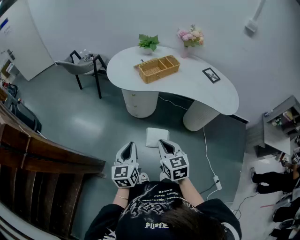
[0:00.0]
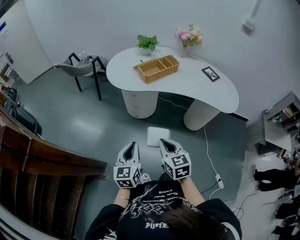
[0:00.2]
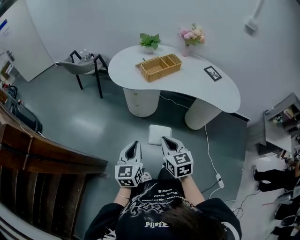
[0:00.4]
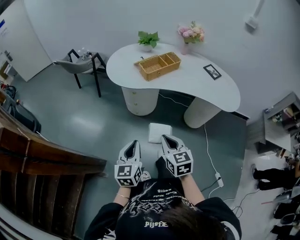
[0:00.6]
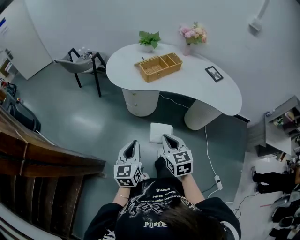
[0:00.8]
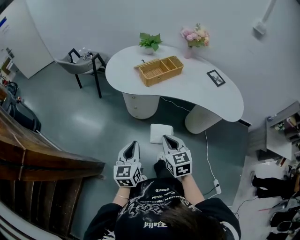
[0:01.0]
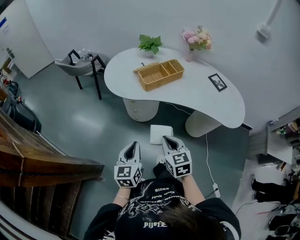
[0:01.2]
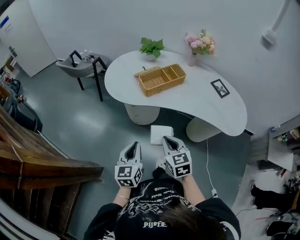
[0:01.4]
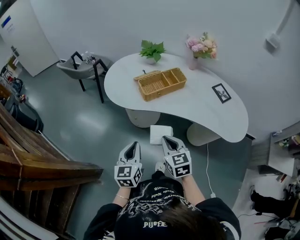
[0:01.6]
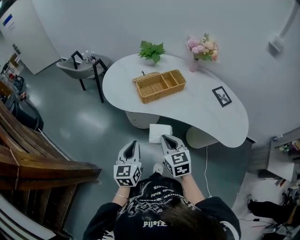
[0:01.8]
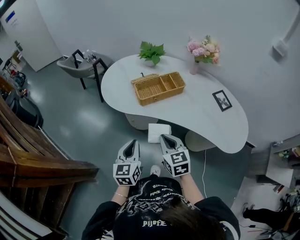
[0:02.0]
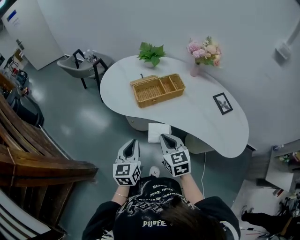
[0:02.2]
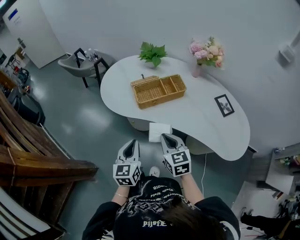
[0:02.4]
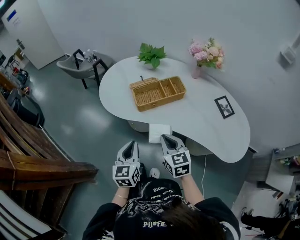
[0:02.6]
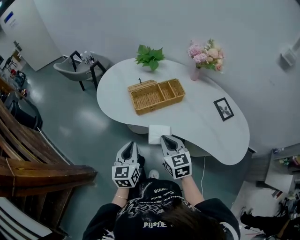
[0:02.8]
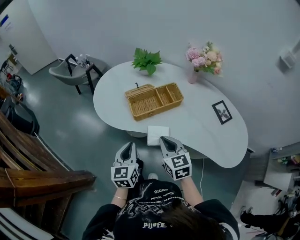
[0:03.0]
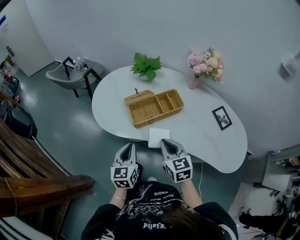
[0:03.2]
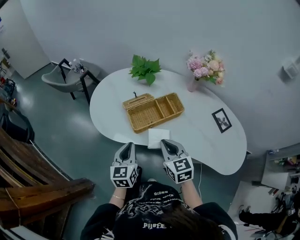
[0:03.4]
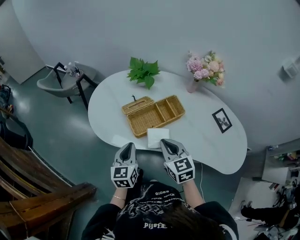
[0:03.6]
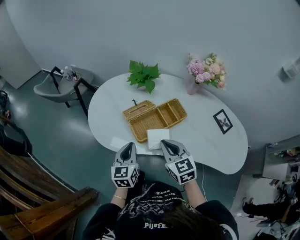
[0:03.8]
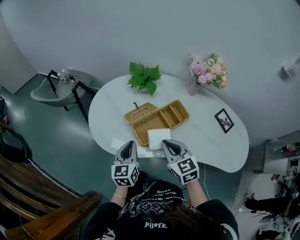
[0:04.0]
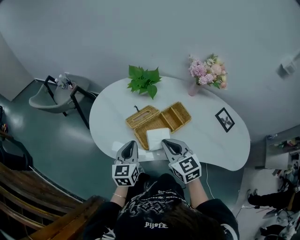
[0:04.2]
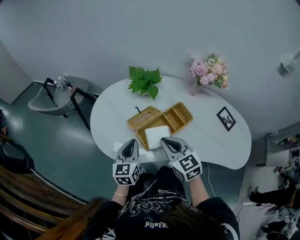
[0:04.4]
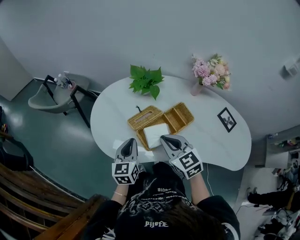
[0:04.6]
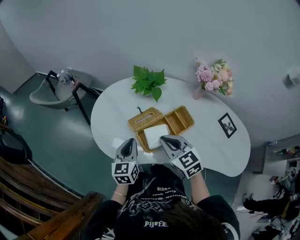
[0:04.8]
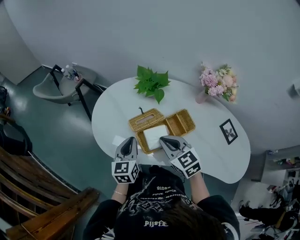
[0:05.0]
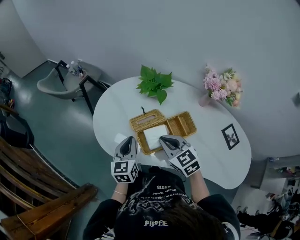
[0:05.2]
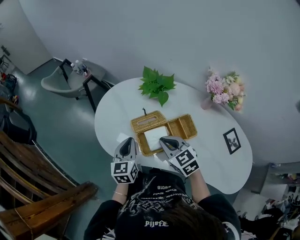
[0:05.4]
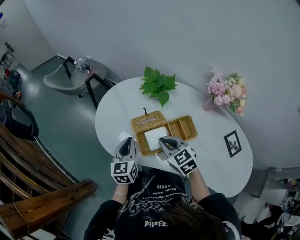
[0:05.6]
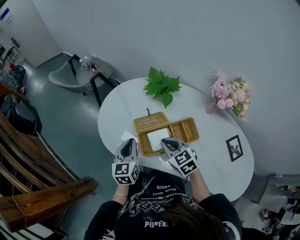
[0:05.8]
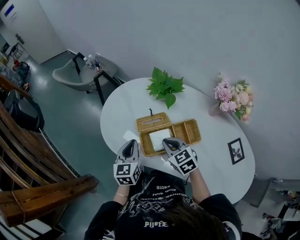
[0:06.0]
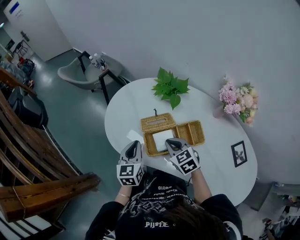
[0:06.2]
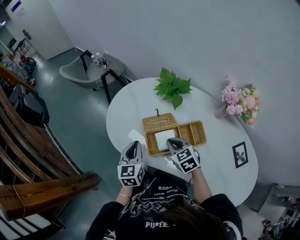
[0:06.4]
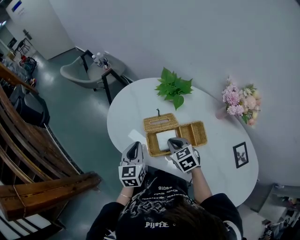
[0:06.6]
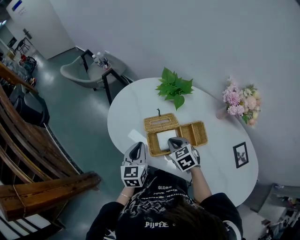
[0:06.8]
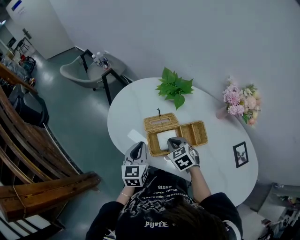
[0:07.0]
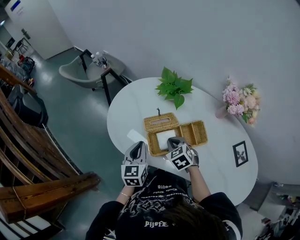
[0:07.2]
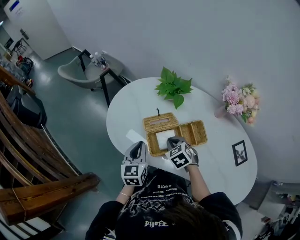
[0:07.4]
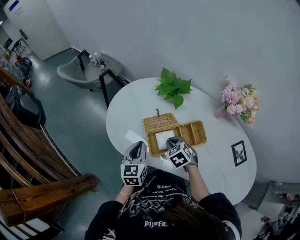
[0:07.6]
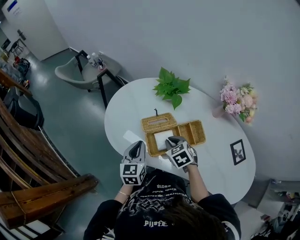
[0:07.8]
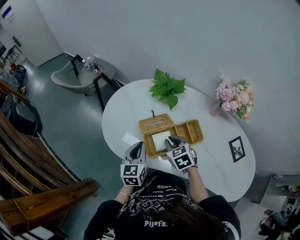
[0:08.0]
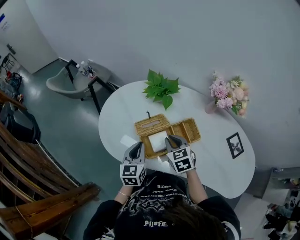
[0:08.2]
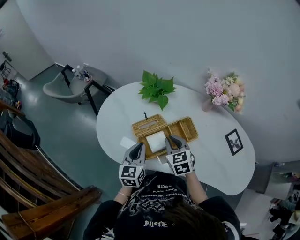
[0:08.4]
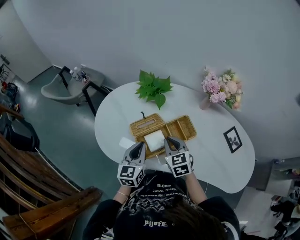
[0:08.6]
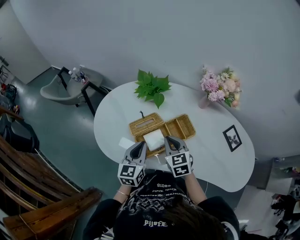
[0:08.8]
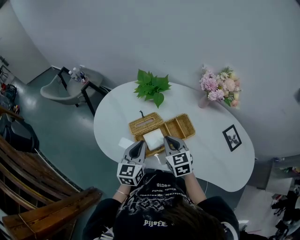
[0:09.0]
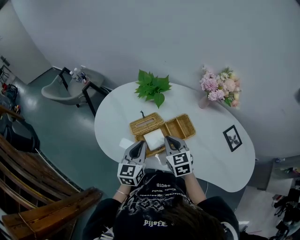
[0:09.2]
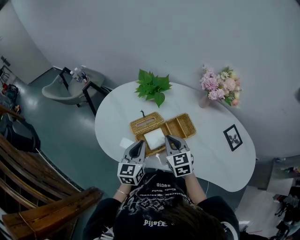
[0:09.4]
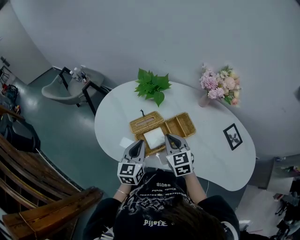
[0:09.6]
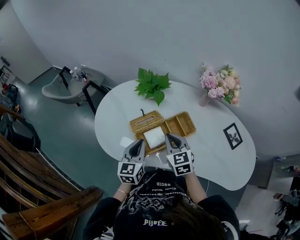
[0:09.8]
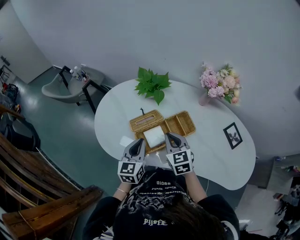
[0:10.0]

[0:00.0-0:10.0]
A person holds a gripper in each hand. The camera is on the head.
0:00.0 to 0:01.4: The left gripper travels forward and to the right by roughly 15 cm. Meanwhile the right gripper moves forward, some 15 cm.
0:01.4 to 0:02.8: Both grippers travel together forward and to the right, some 20 cm.
0:02.8 to 0:04.2: Both grippers move forward, about 25 cm.
0:04.2 to 0:05.8: The left gripper changes its angle by some 20 degrees, while the right gripper shifts approximately 5 cm forward, and turns by about 30 degrees.
0:05.8 to 0:07.2: The right gripper travels downward by some 5 cm.
0:07.2 to 0:08.6: The right gripper shifts about 5 cm upward, and swivels approximately 30 degrees. Meanwhile the left gripper goes approximately 5 cm to the right.
0:08.6 to 0:10.0: The grippers stay close to where they were, moving slightly.

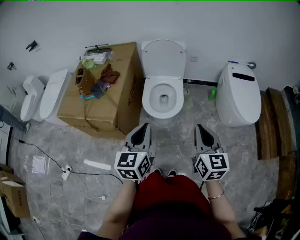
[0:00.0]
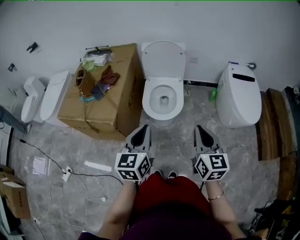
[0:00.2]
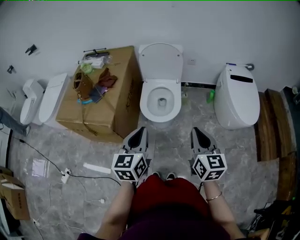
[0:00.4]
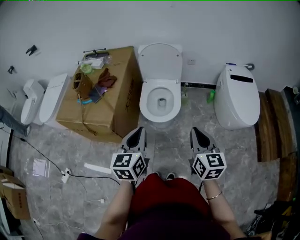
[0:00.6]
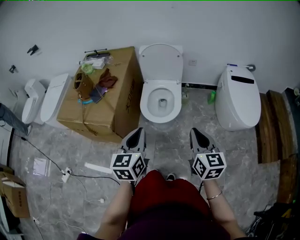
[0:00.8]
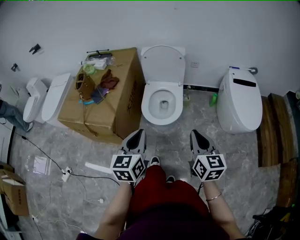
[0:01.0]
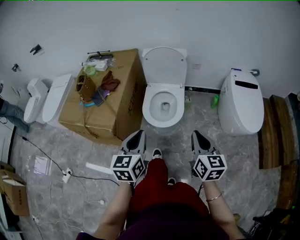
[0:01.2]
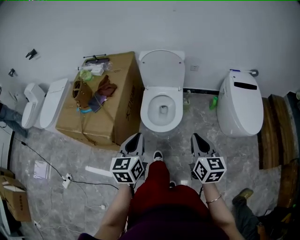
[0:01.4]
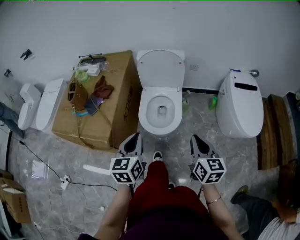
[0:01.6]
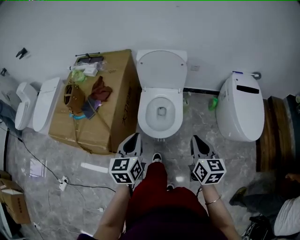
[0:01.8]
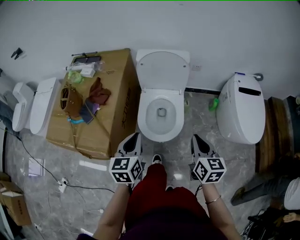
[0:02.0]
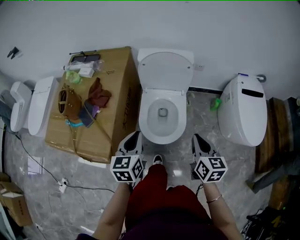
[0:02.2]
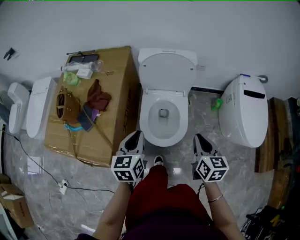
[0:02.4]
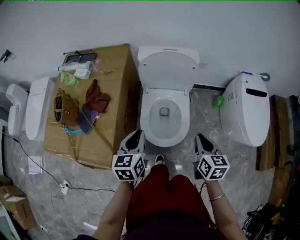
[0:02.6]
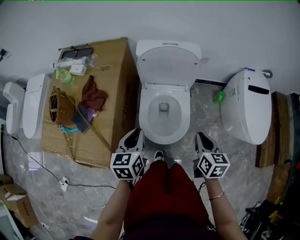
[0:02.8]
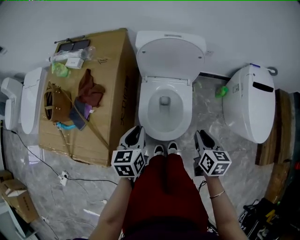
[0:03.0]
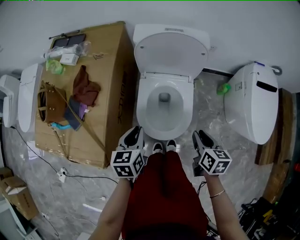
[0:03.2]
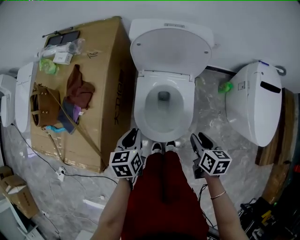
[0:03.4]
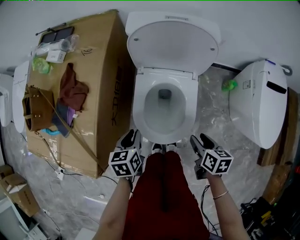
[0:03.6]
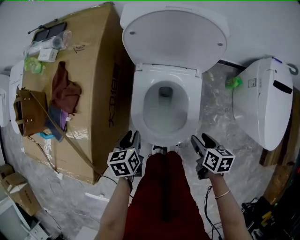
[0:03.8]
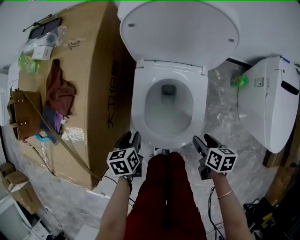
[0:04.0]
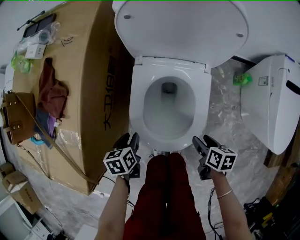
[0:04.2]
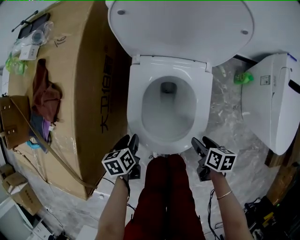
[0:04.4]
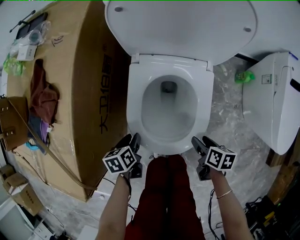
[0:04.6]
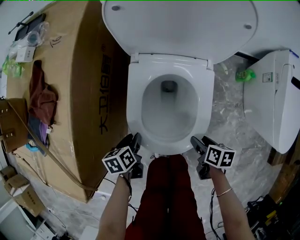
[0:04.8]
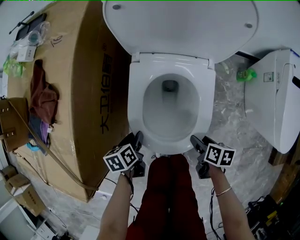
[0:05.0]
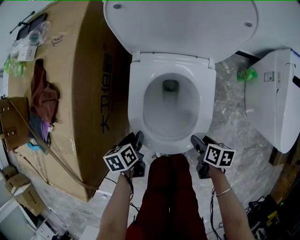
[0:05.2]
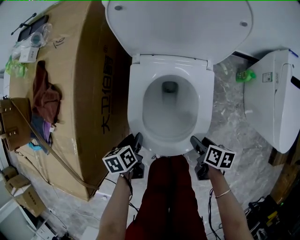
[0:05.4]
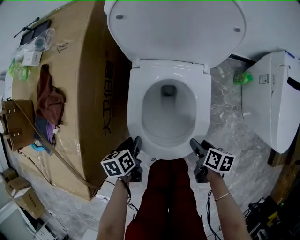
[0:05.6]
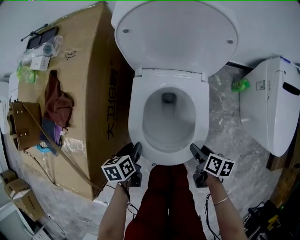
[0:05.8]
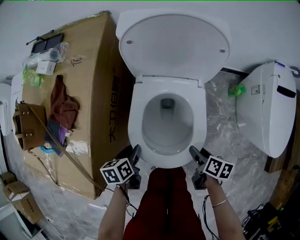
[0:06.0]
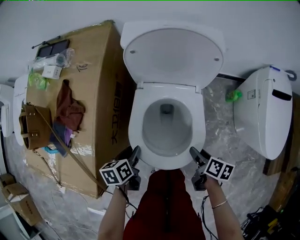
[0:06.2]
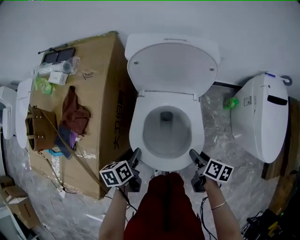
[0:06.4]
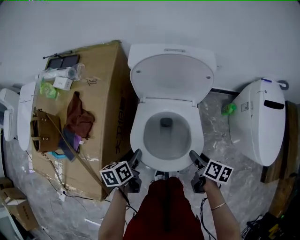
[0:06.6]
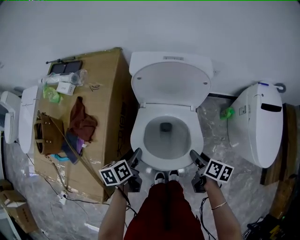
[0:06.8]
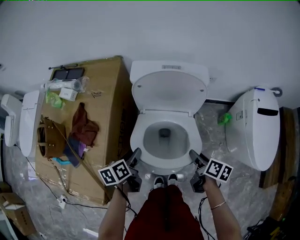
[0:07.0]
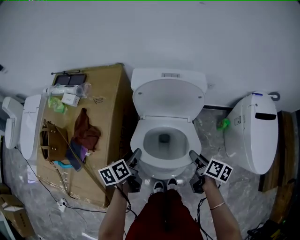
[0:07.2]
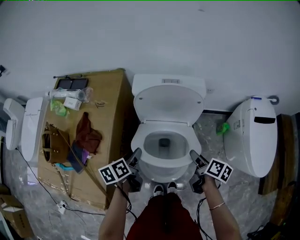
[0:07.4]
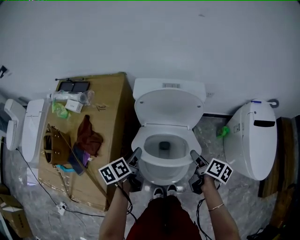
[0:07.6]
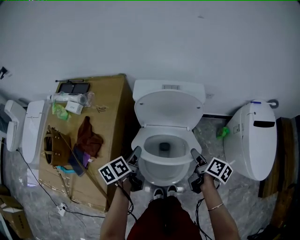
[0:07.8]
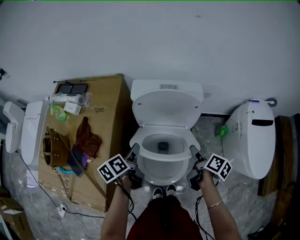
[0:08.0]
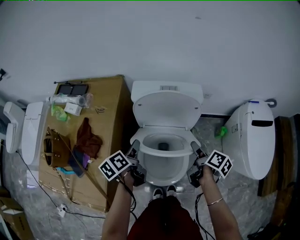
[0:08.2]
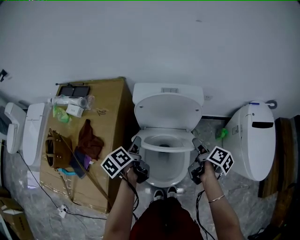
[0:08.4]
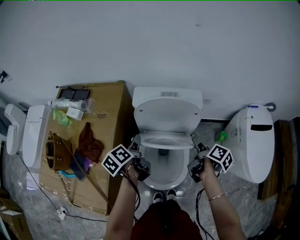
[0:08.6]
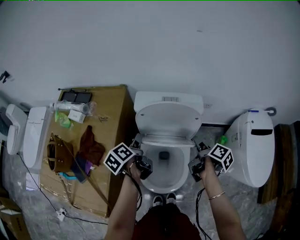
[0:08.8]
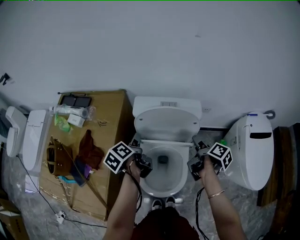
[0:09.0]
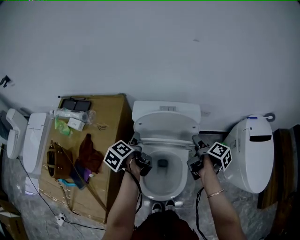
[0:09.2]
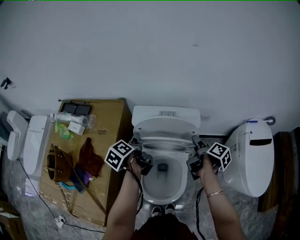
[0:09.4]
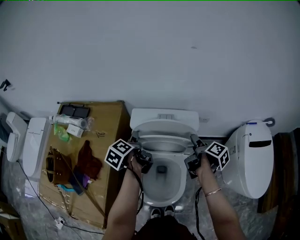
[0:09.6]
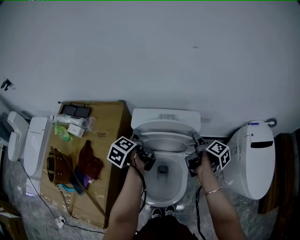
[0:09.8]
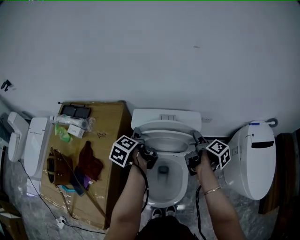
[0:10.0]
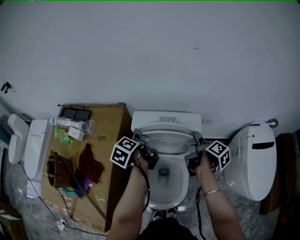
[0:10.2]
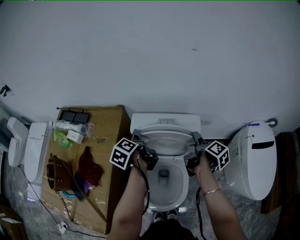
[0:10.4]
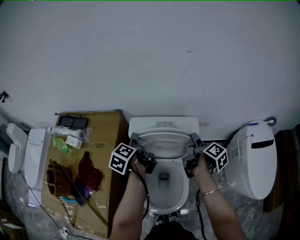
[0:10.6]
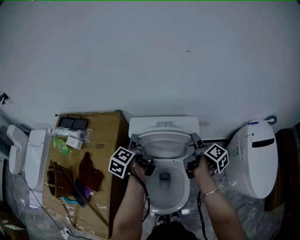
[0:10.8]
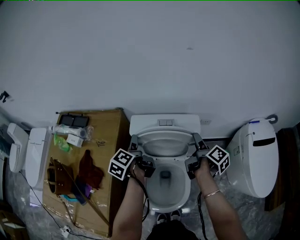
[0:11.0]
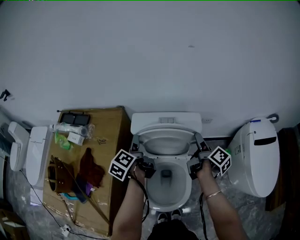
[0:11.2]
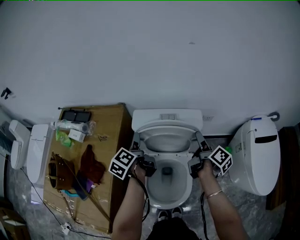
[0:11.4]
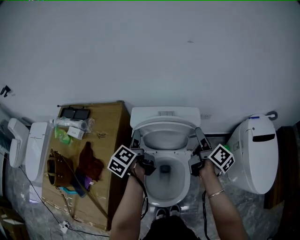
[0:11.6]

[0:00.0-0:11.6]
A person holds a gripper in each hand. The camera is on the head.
0:00.0 to 0:01.4: The two grippers go roughly 5 cm forward.
0:01.4 to 0:02.8: The grippers both shift forward and downward by some 25 cm. The right gripper rotates about 20 degrees.
0:02.8 to 0:04.4: The grippers both shift downward by some 35 cm. The right gripper changes its angle by roughly 40 degrees, and opens its fingers; the left gripper rotates some 40 degrees, and opens up.
0:04.4 to 0:05.8: The left gripper shifts about 5 cm upward.
0:05.8 to 0:07.2: Both grippers travel together upward and forward, roughly 20 cm.
0:07.2 to 0:08.8: Both grippers move forward and upward, approximately 15 cm. The right gripper changes its angle by some 20 degrees, while the left gripper turns by approximately 30 degrees.
0:08.8 to 0:10.2: The two grippers go roughly 10 cm forward.
0:10.2 to 0:11.6: The right gripper goes about 5 cm upward, and changes its angle by some 30 degrees.

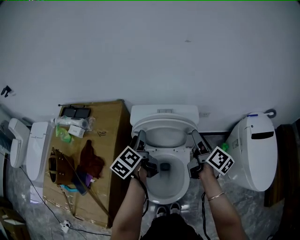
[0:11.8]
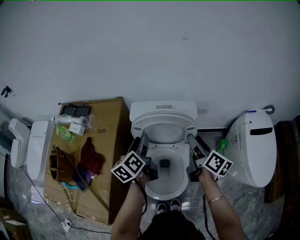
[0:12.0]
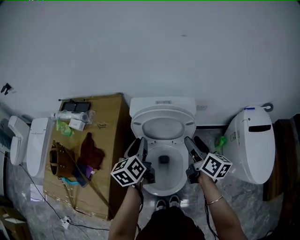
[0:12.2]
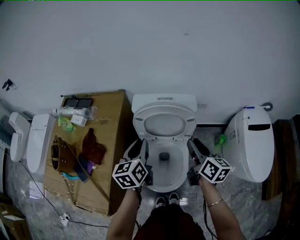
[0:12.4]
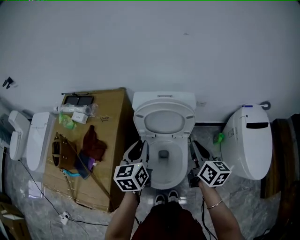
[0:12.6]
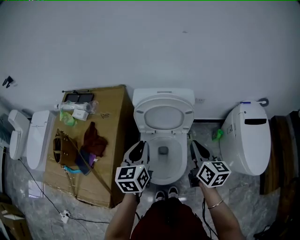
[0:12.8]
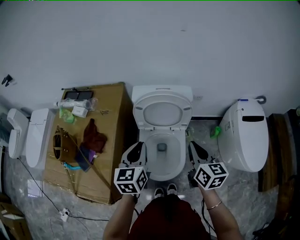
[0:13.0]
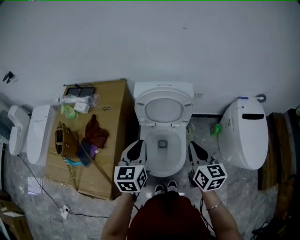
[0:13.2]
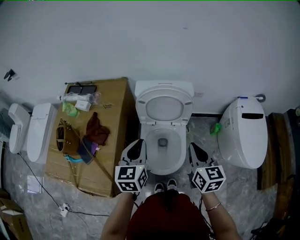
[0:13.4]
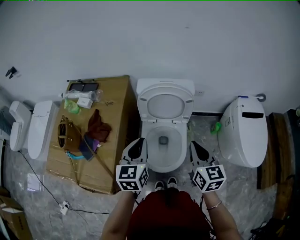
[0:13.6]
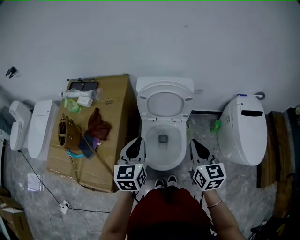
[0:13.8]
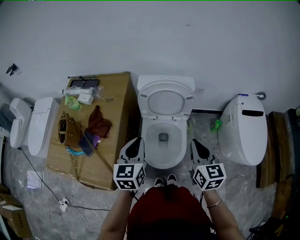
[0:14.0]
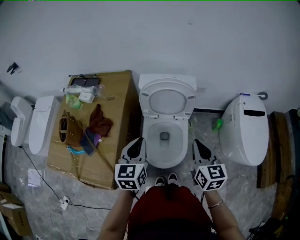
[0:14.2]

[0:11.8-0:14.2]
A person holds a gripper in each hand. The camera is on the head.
0:11.8 to 0:13.0: Both grippers travel together backward, roughly 20 cm. The right gripper rotates some 40 degrees, and closes up. The left gripper twists some 40 degrees clockwise, seen from behind, and closes.
0:13.0 to 0:14.2: Both grippers travel together backward, some 5 cm.
